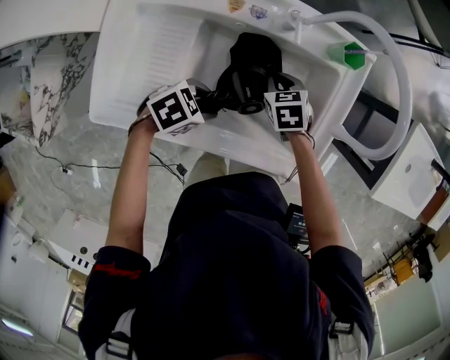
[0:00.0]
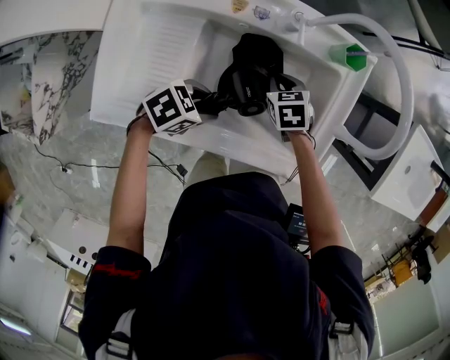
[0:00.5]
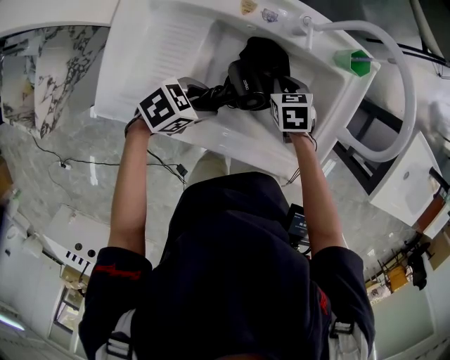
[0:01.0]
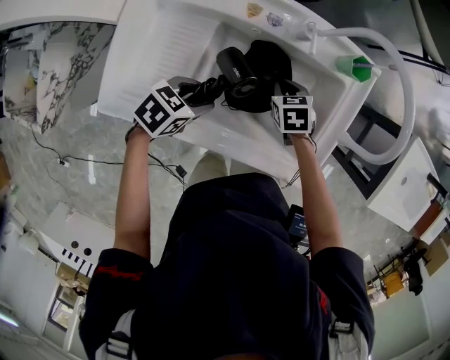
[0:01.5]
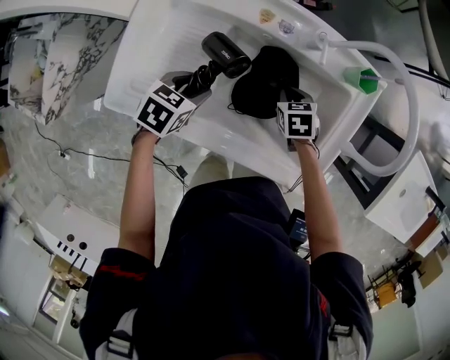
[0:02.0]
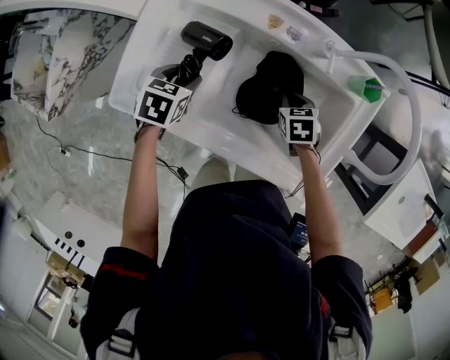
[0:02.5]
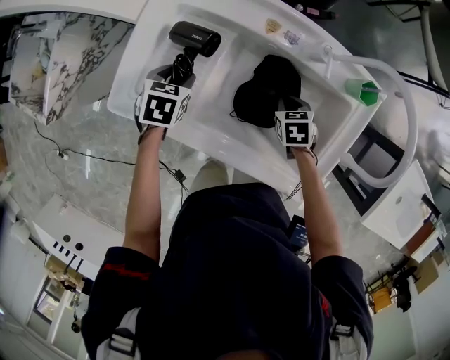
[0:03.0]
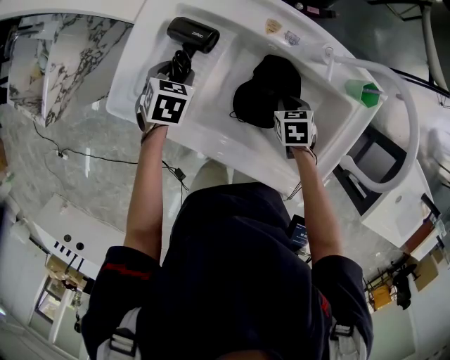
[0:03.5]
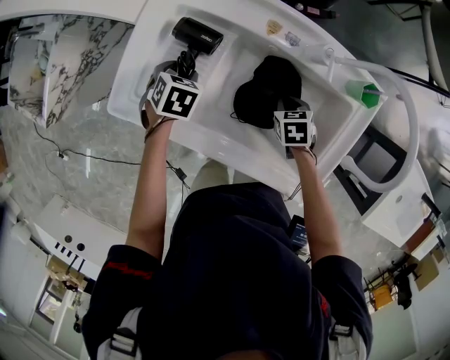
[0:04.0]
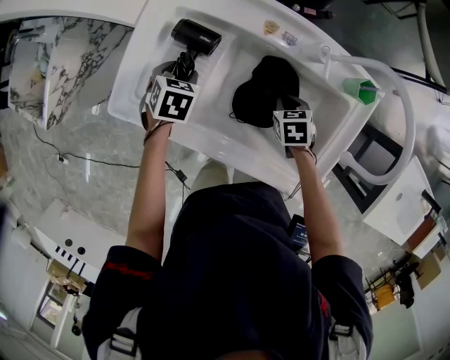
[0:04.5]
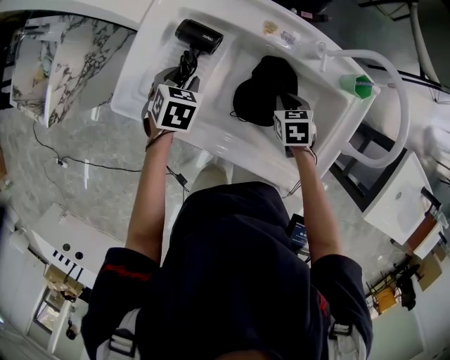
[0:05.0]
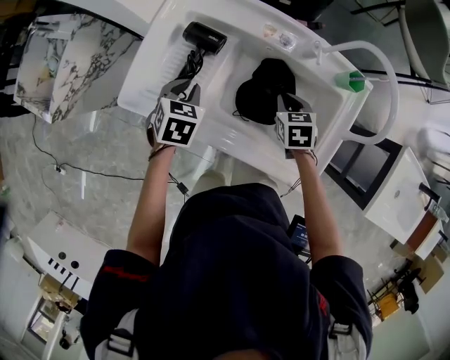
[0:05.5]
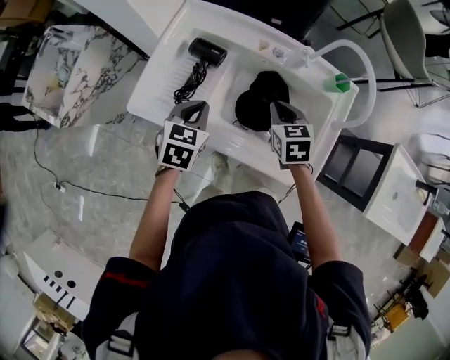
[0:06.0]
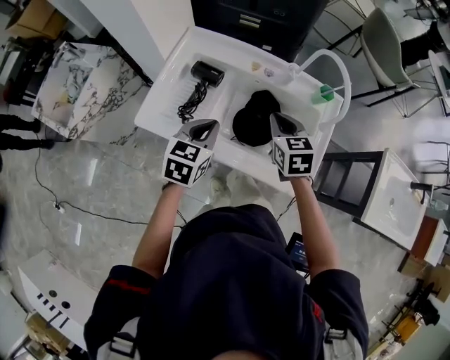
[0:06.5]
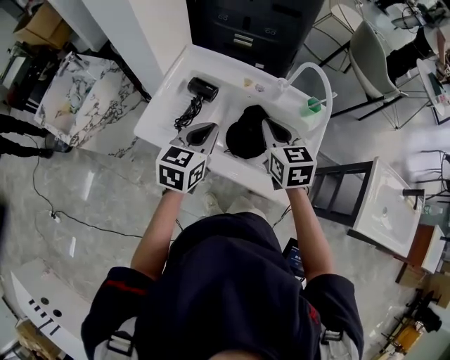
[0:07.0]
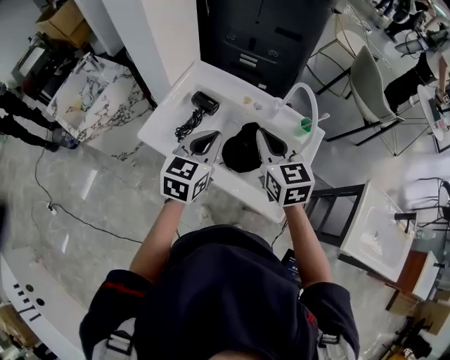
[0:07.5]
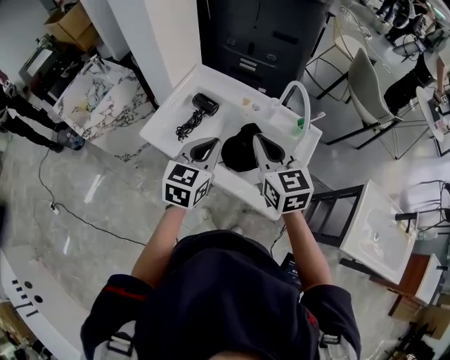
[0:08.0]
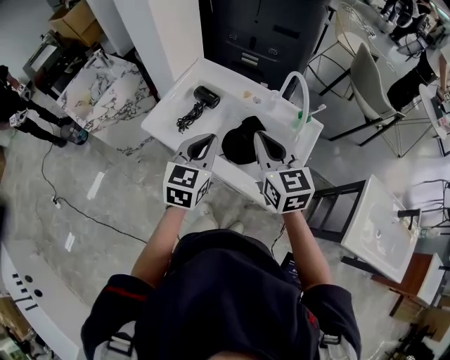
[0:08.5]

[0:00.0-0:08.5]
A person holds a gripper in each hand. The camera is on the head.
0:00.0 to 0:02.0: The left gripper moves approximately 10 cm, and changes its angle by roughly 40 degrees.
0:02.0 to 0:04.0: The left gripper changes place by approximately 10 cm, and swivels some 30 degrees.
0:04.0 to 0:06.5: The right gripper goes approximately 25 cm upward, and points its fingers about 30 degrees further upward. Meanwhile the left gripper goes approximately 25 cm upward, backward and to the right, tips its fingers upward by roughly 40 degrees, and closes up.
0:06.5 to 0:08.5: The left gripper is displaced upward, backward and to the right by about 15 cm, and turns by some 20 degrees; the right gripper travels upward and backward by some 20 cm, and changes its angle by about 30 degrees.

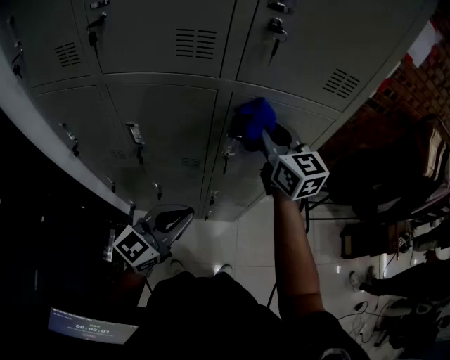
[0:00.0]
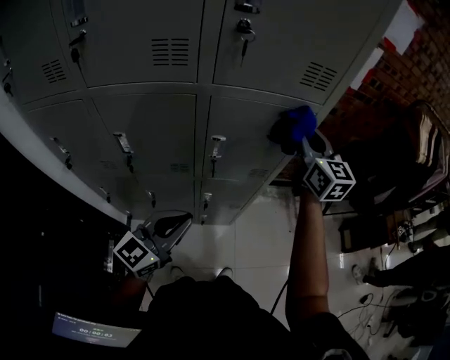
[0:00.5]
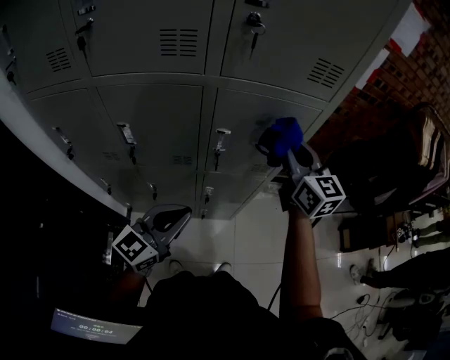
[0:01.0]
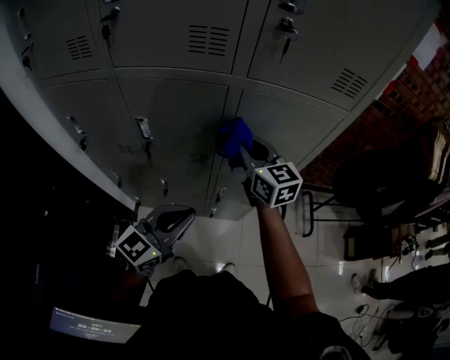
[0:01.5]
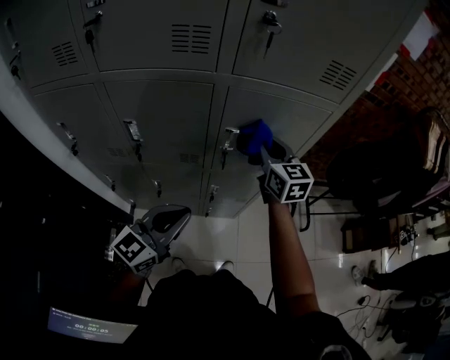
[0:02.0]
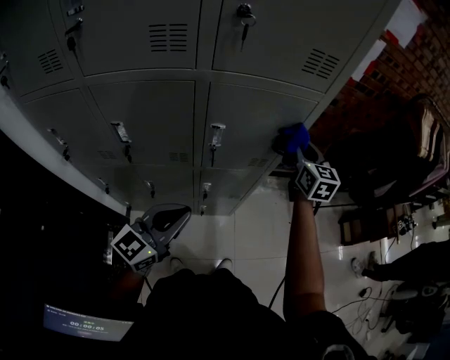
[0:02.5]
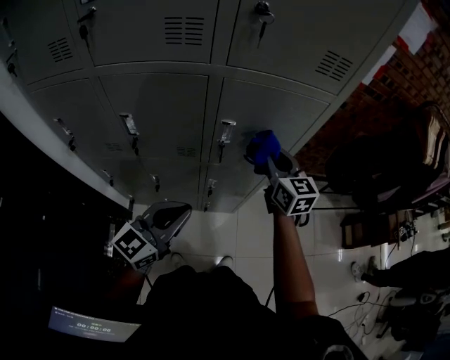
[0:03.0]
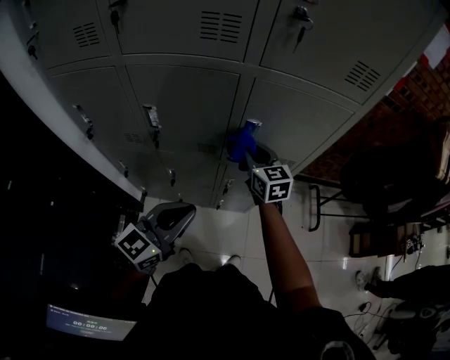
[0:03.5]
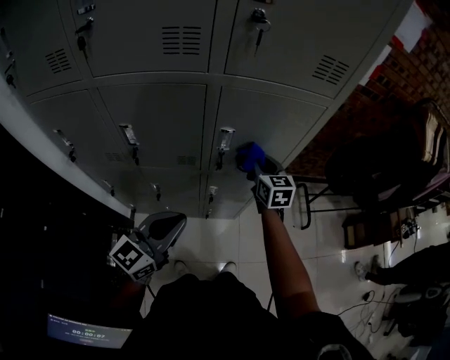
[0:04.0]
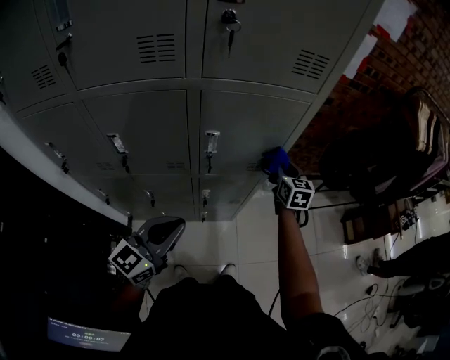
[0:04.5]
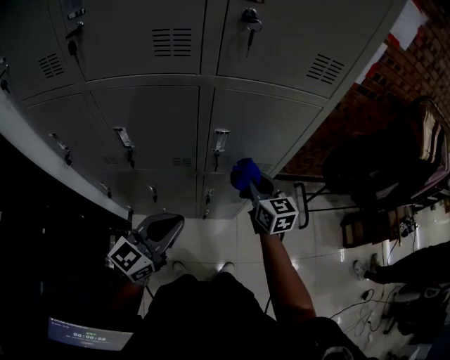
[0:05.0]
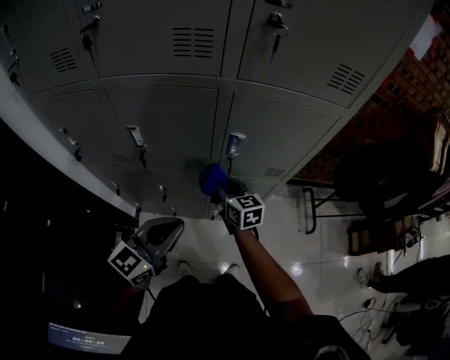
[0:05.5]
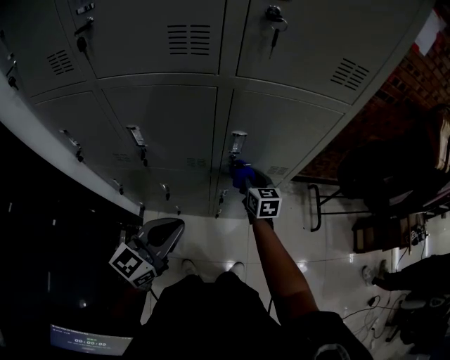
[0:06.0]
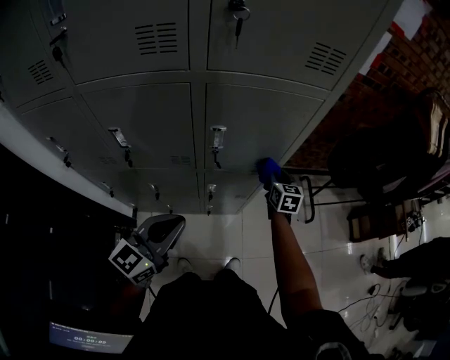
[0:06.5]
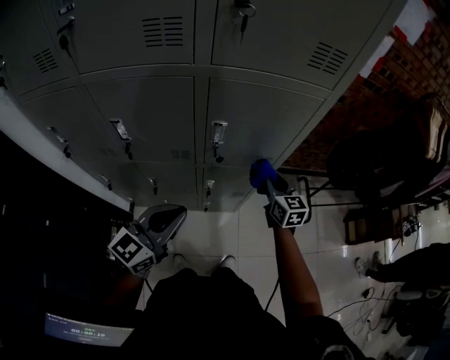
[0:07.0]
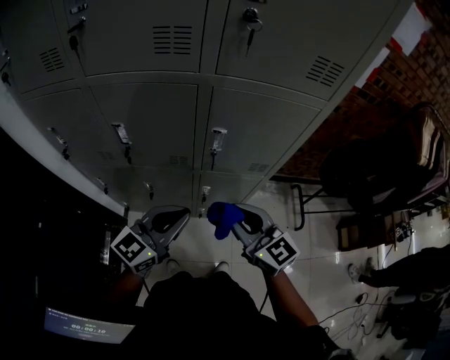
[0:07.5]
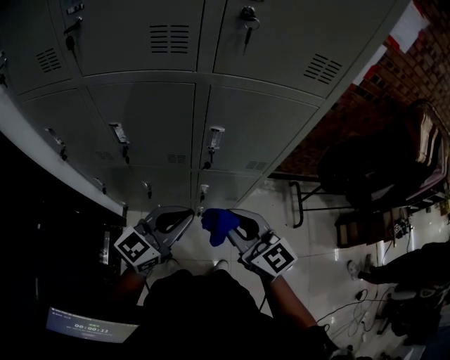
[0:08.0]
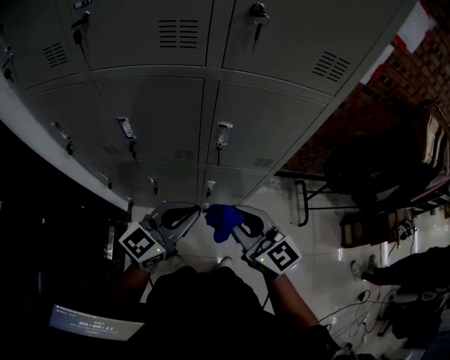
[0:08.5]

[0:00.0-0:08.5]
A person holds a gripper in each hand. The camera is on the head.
0:00.0 to 0:02.0: The right gripper moves left and right over about 20 cm, changing direction 2 times.
0:02.0 to 0:04.0: The right gripper goes left and right, some 25 cm each way, reversing 2 times.
0:04.0 to 0:06.5: The right gripper goes left and right, approximately 25 cm each way, reversing 2 times.
0:06.5 to 0:08.5: The right gripper moves backward, upward and to the left, roughly 35 cm, and rotates roughly 50 degrees.

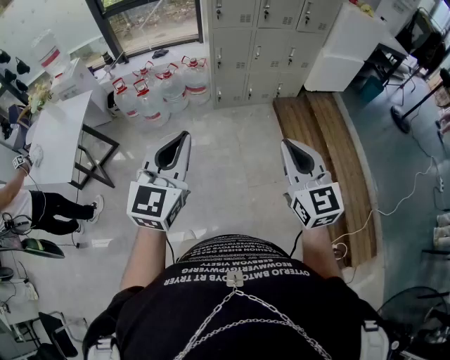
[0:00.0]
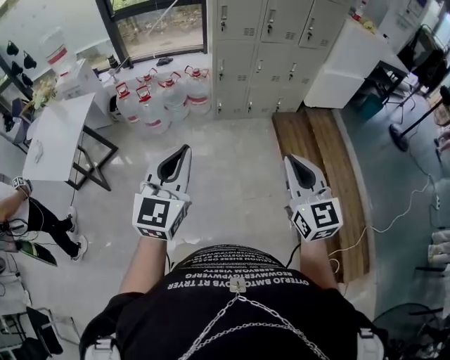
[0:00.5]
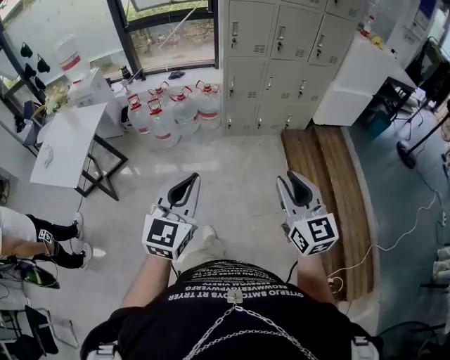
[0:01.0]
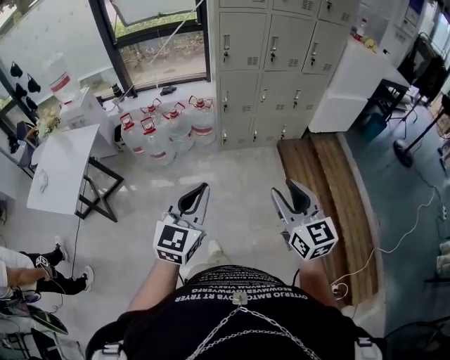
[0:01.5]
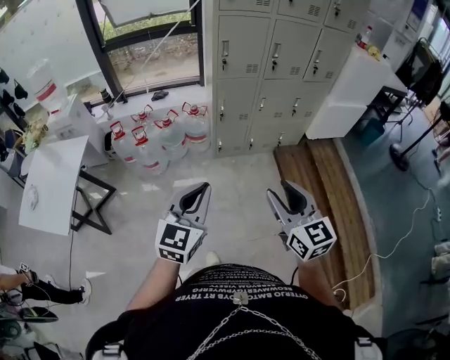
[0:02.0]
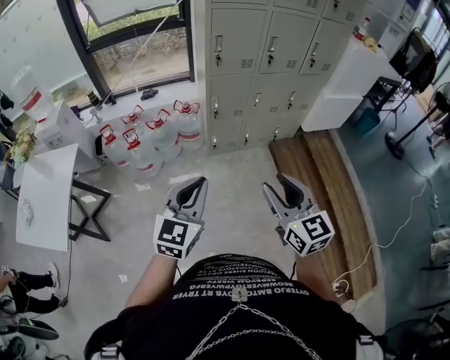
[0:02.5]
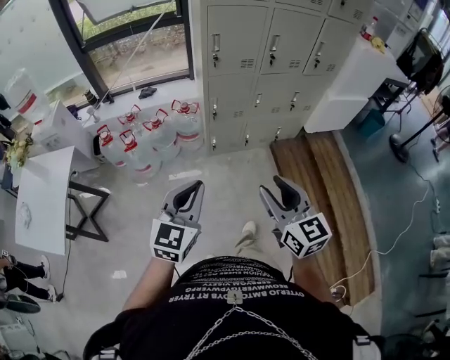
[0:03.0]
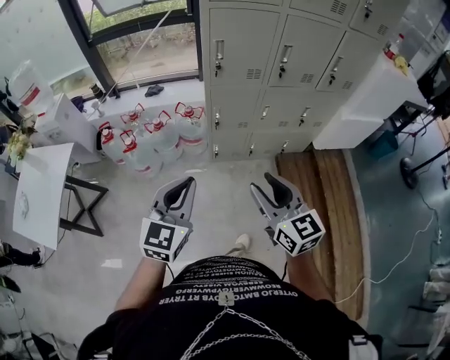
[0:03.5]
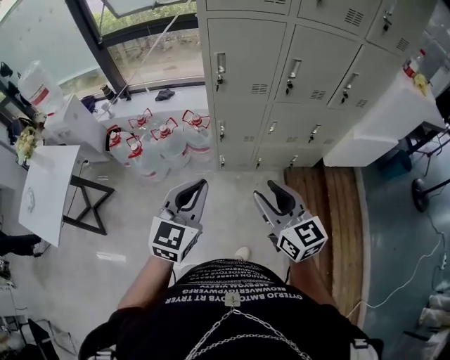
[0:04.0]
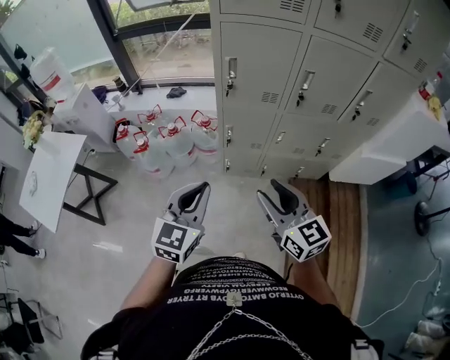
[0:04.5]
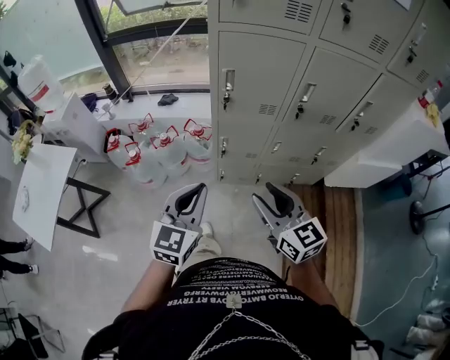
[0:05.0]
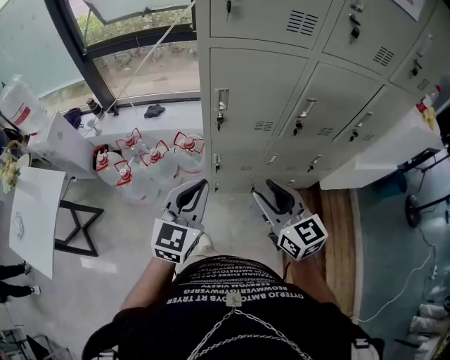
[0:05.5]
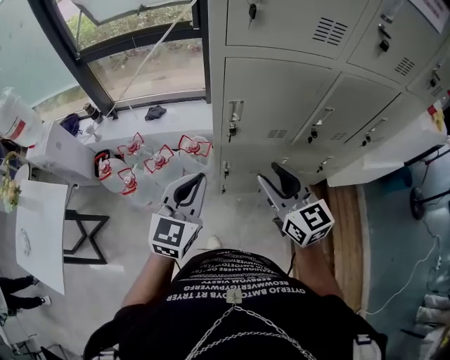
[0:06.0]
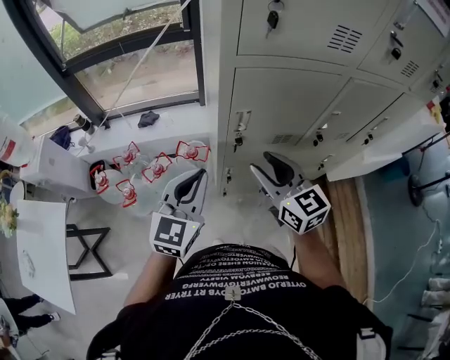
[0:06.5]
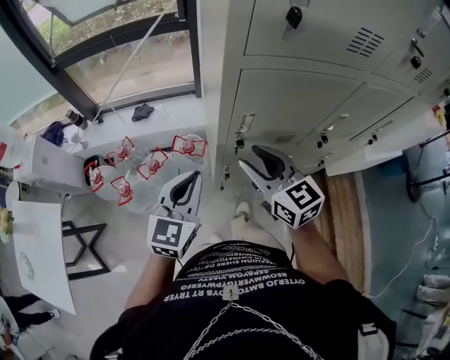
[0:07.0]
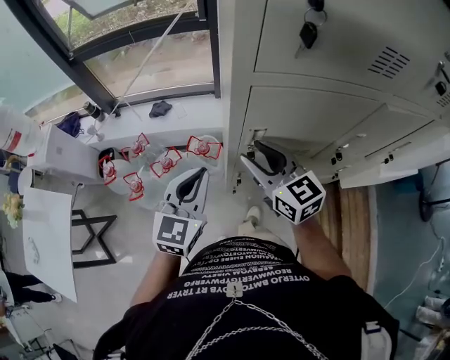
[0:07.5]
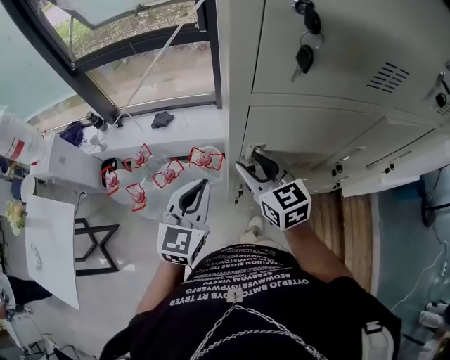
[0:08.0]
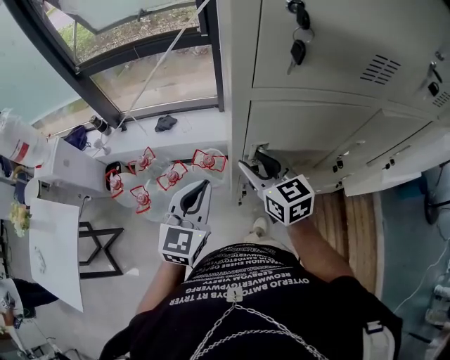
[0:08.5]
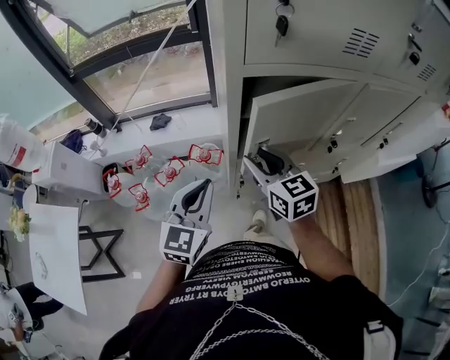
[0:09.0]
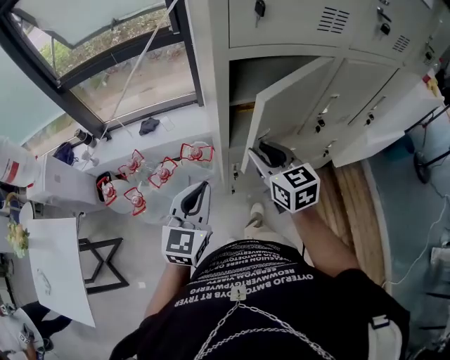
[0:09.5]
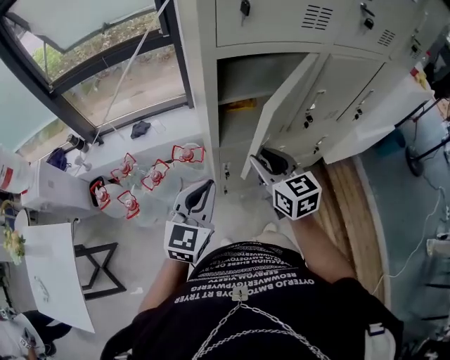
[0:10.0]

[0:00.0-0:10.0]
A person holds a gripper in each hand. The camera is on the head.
0:00.0 to 0:02.0: The grippers both shift forward by approximately 20 cm. The right gripper opens its fingers.
0:02.0 to 0:04.0: Both grippers travel together forward, some 35 cm.
0:04.0 to 0:06.0: Both grippers move forward, some 30 cm.
0:06.0 to 0:08.0: Both grippers travel together forward, approximately 15 cm.
0:08.0 to 0:10.0: The left gripper heads backward, covering approximately 10 cm. Meanwhile the right gripper heads backward and to the right, covering about 15 cm.
